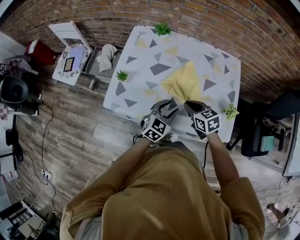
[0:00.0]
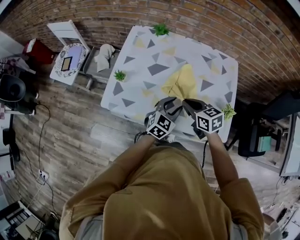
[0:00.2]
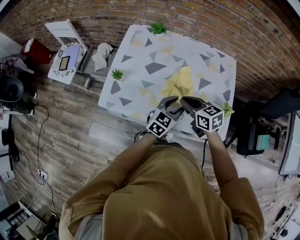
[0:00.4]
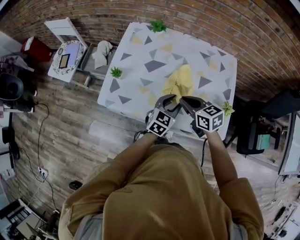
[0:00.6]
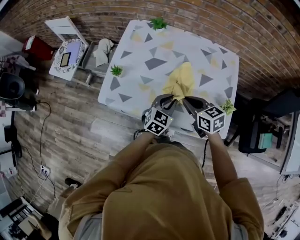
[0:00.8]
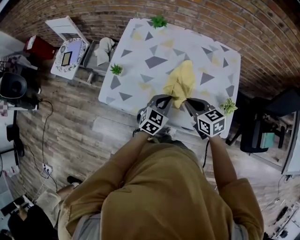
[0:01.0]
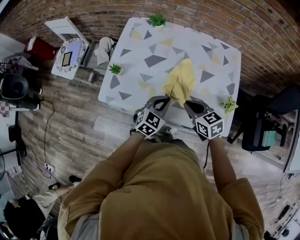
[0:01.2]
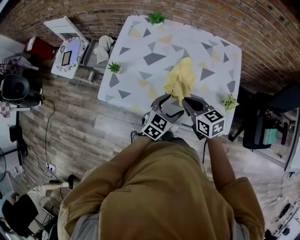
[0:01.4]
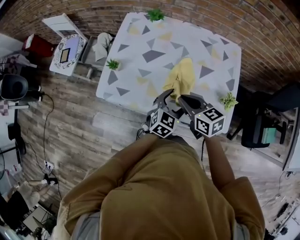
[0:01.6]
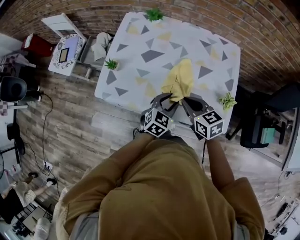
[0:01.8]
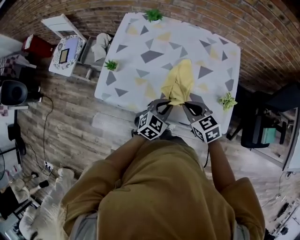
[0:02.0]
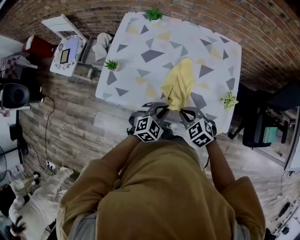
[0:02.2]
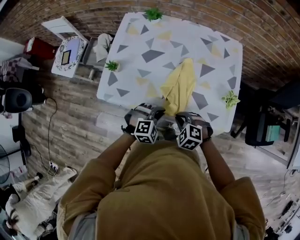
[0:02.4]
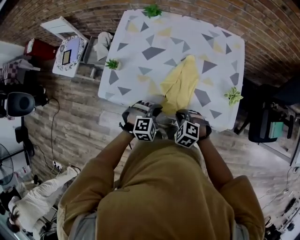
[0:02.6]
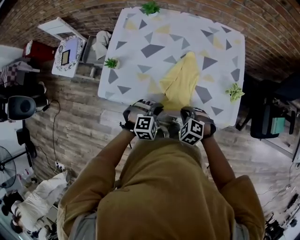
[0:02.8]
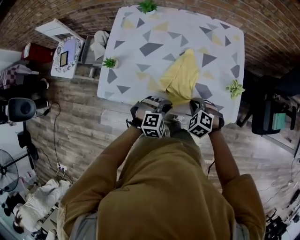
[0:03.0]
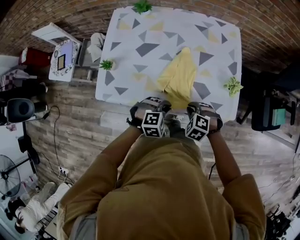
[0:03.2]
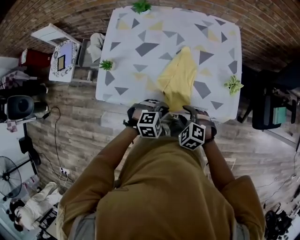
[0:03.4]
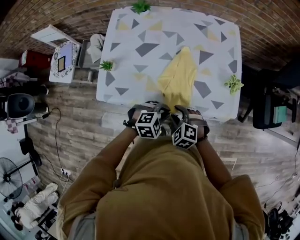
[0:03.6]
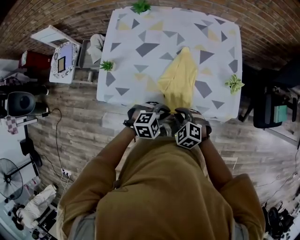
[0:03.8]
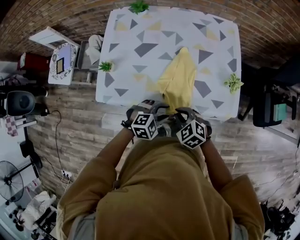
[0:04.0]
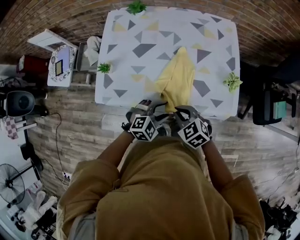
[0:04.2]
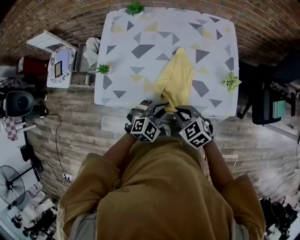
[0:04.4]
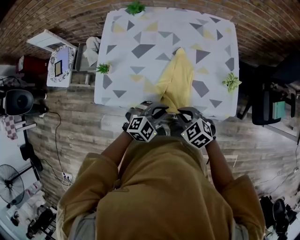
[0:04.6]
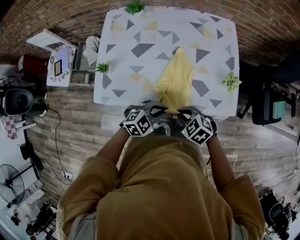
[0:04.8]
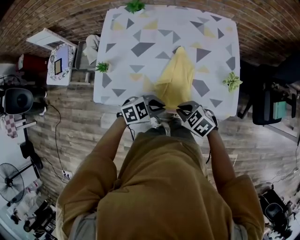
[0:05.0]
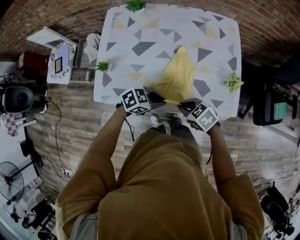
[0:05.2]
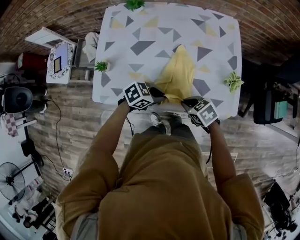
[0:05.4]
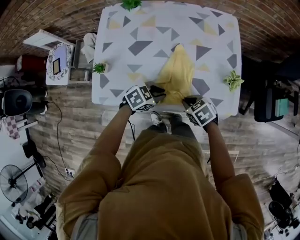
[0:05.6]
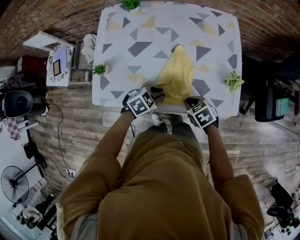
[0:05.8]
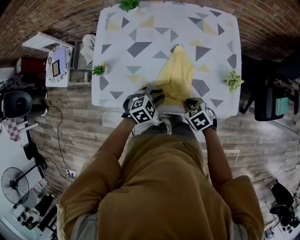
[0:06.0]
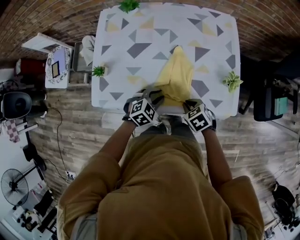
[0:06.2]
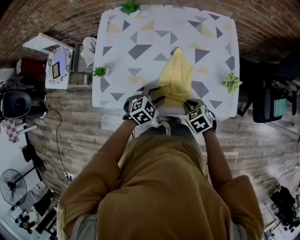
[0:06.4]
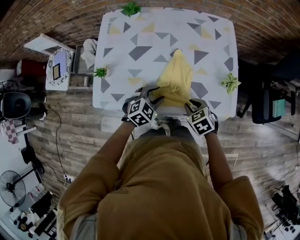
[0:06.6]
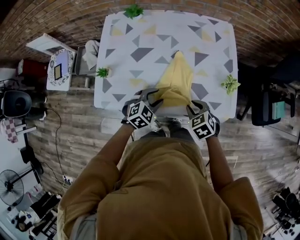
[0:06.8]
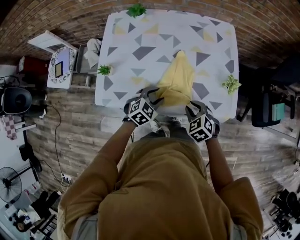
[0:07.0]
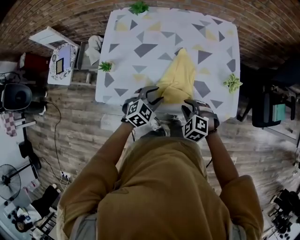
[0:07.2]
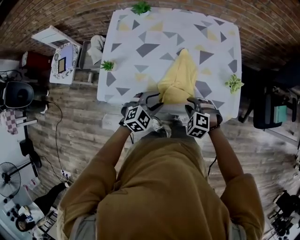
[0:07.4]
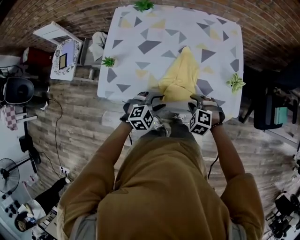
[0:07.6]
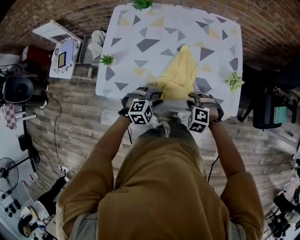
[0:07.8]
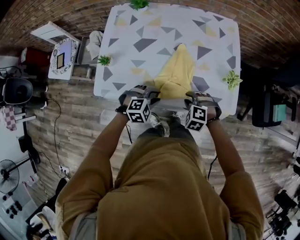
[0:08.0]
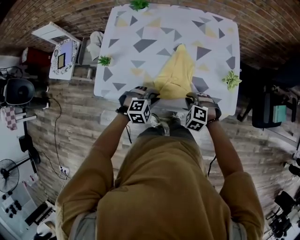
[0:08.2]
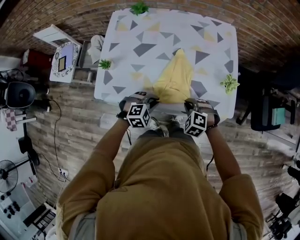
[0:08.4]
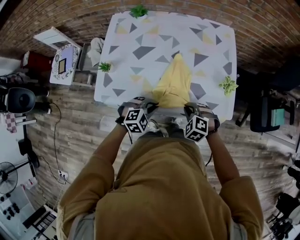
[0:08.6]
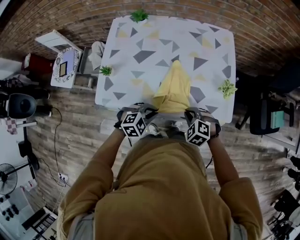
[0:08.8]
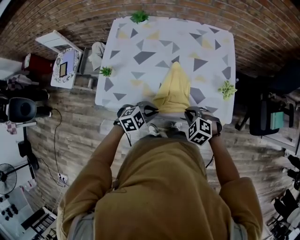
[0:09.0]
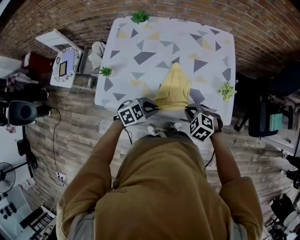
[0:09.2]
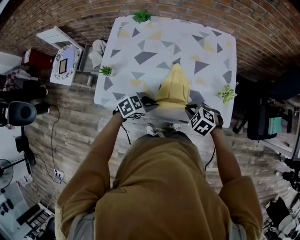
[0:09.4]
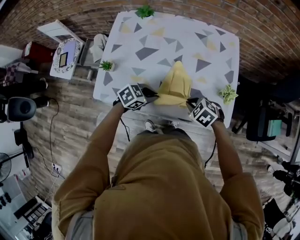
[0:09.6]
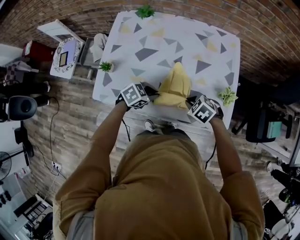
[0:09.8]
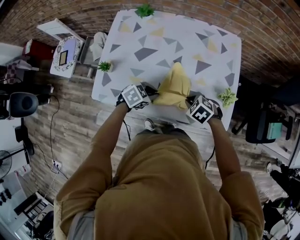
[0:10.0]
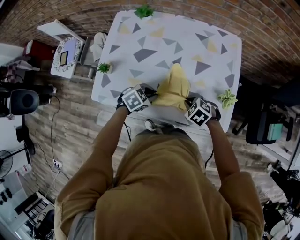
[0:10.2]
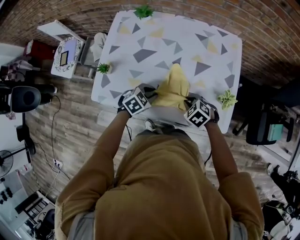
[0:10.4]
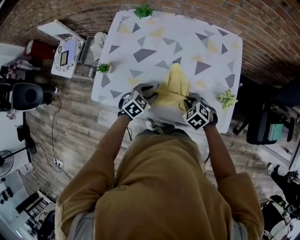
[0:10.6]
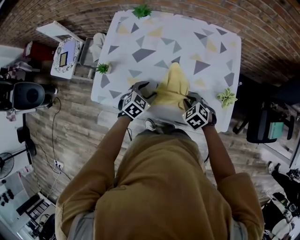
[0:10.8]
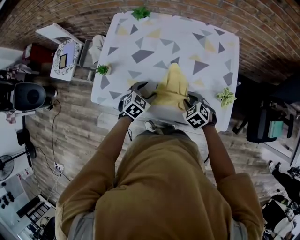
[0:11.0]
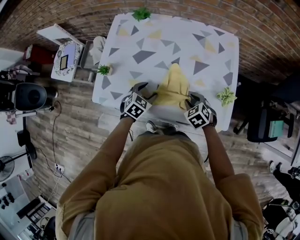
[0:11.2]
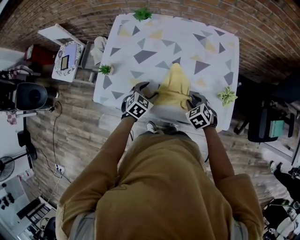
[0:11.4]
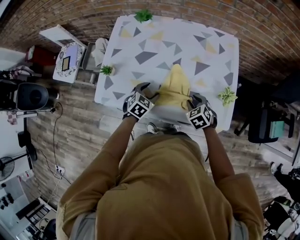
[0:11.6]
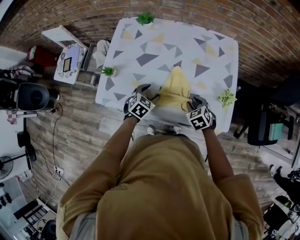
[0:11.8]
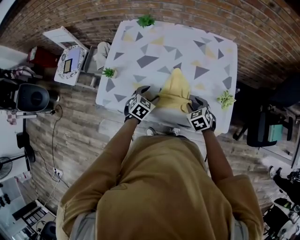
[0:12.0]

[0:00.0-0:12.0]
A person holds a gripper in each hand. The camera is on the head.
0:00.0 to 0:01.6: The left gripper goes left and right, some 5 cm each way, reversing 2 times, and opens its fingers, while the right gripper shifts about 5 cm upward.
0:01.6 to 0:03.0: The right gripper goes about 15 cm downward and to the right, and angles its fingers downward, by some 30 degrees. Meanwhile the left gripper goes approximately 10 cm downward and backward, twists approximately 50 degrees clockwise, seen from behind, and closes up.
0:03.0 to 0:04.4: The left gripper rotates some 20 degrees. The right gripper shifts approximately 10 cm backward, upward and to the left, and turns by some 30 degrees.
0:04.4 to 0:06.0: The grippers both shift downward by about 5 cm. The right gripper rotates approximately 20 degrees. Meanwhile the left gripper rotates approximately 20 degrees.
0:06.0 to 0:07.6: The left gripper shifts approximately 5 cm backward; the right gripper rolls counterclockwise, seen from behind, by about 50 degrees.
0:07.6 to 0:09.0: The grippers make only small movements.
0:09.0 to 0:10.4: The right gripper moves roughly 10 cm. The left gripper moves roughly 10 cm, and turns by some 20 degrees.
0:10.4 to 0:12.0: The right gripper changes its angle by some 30 degrees, while the left gripper changes its angle by about 20 degrees.

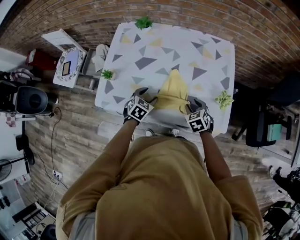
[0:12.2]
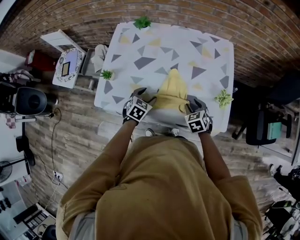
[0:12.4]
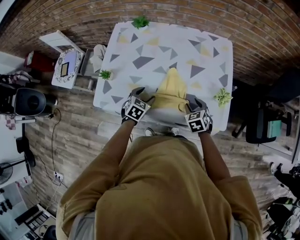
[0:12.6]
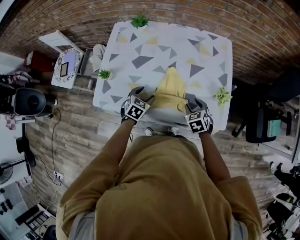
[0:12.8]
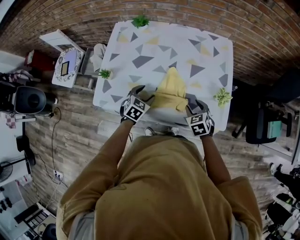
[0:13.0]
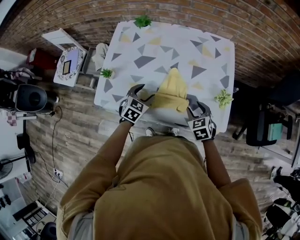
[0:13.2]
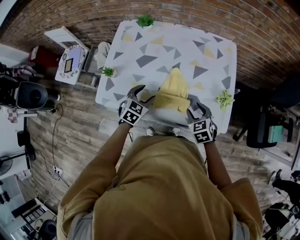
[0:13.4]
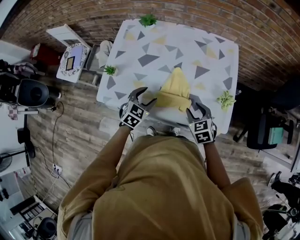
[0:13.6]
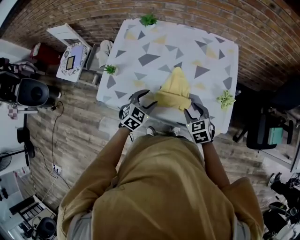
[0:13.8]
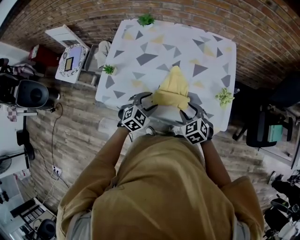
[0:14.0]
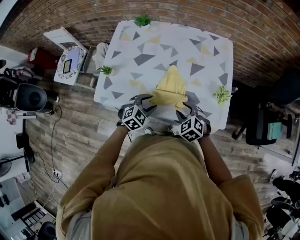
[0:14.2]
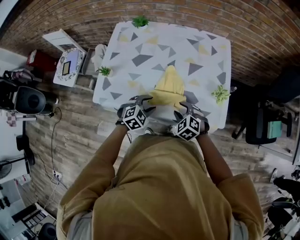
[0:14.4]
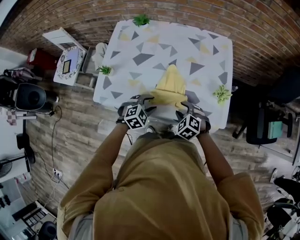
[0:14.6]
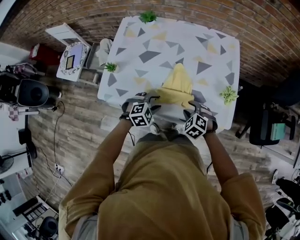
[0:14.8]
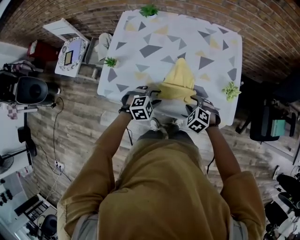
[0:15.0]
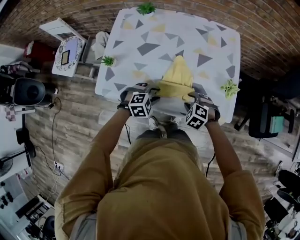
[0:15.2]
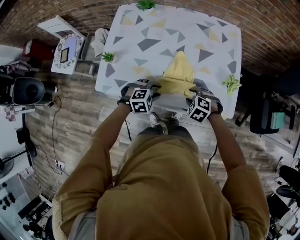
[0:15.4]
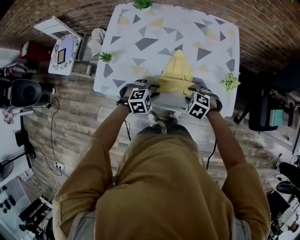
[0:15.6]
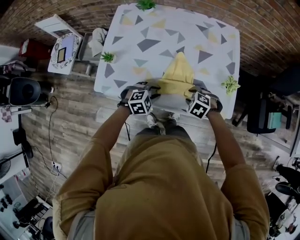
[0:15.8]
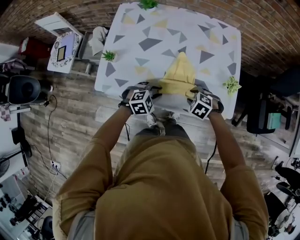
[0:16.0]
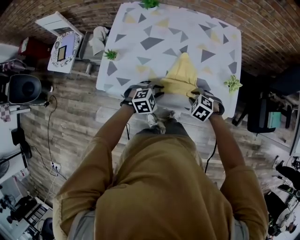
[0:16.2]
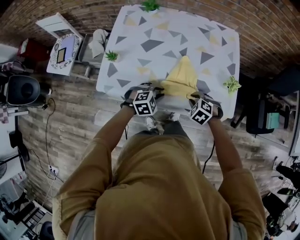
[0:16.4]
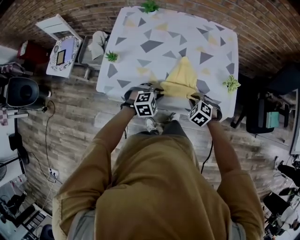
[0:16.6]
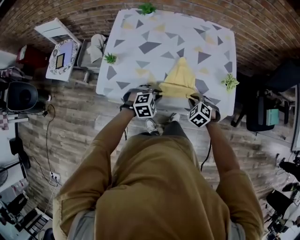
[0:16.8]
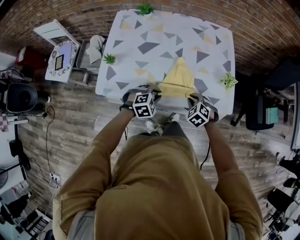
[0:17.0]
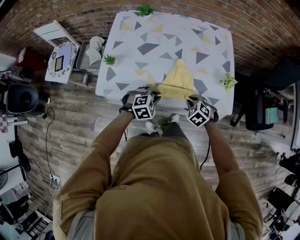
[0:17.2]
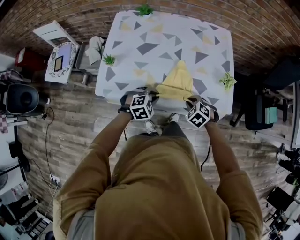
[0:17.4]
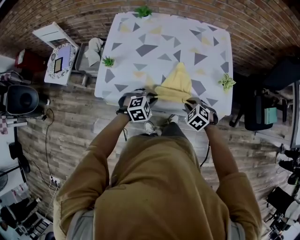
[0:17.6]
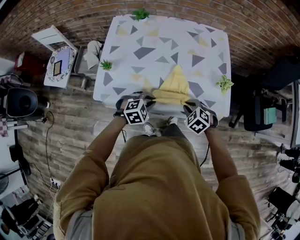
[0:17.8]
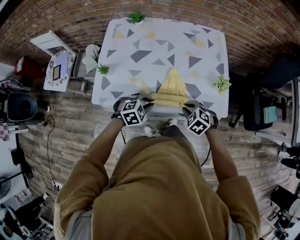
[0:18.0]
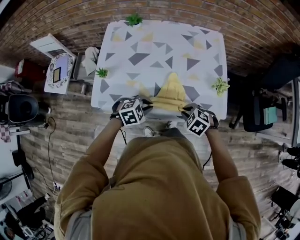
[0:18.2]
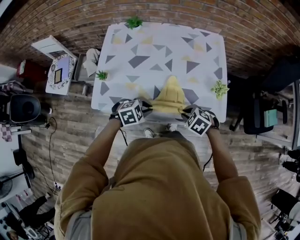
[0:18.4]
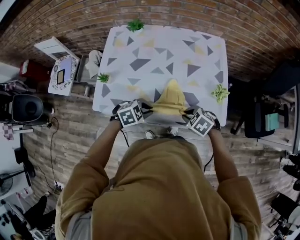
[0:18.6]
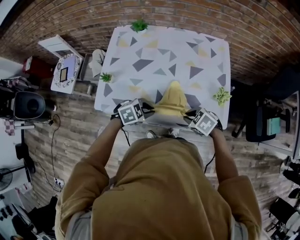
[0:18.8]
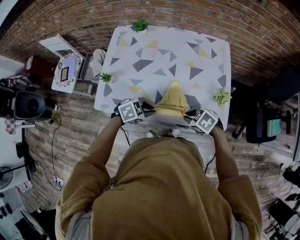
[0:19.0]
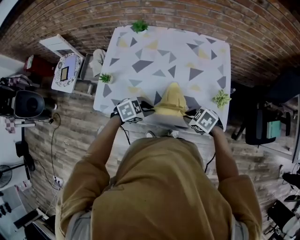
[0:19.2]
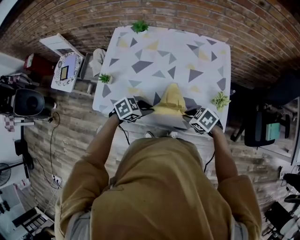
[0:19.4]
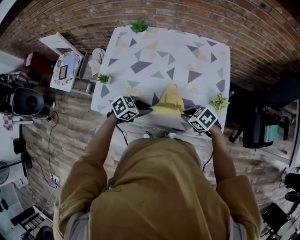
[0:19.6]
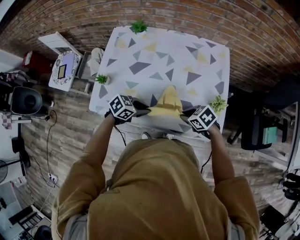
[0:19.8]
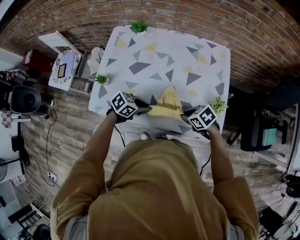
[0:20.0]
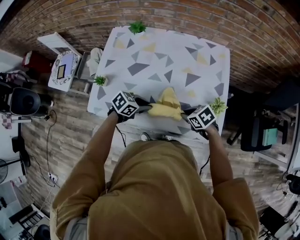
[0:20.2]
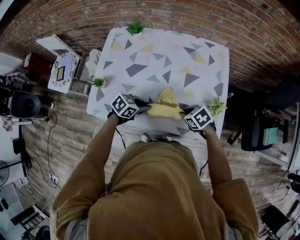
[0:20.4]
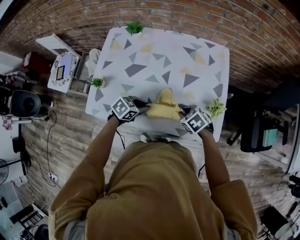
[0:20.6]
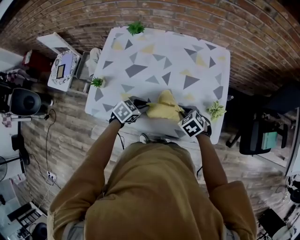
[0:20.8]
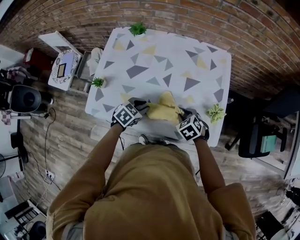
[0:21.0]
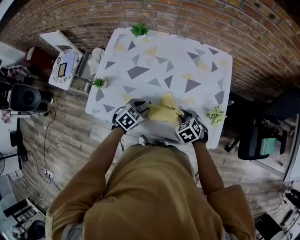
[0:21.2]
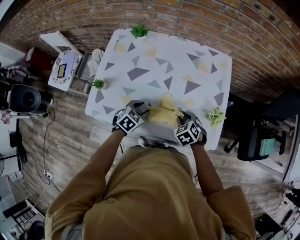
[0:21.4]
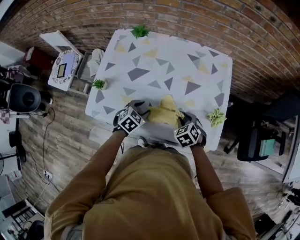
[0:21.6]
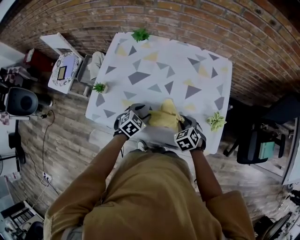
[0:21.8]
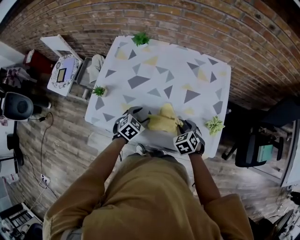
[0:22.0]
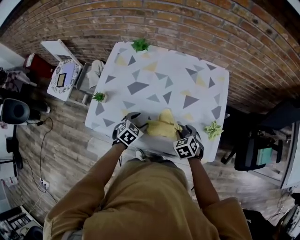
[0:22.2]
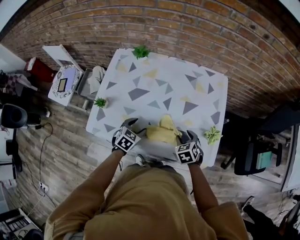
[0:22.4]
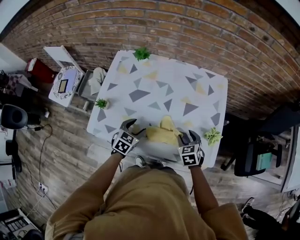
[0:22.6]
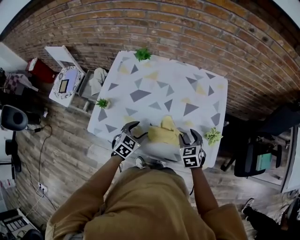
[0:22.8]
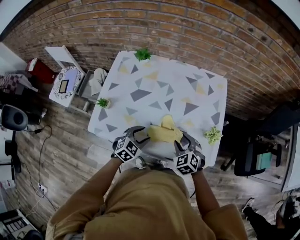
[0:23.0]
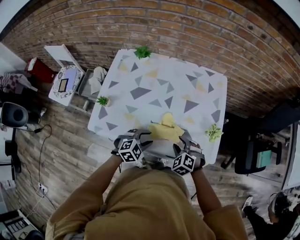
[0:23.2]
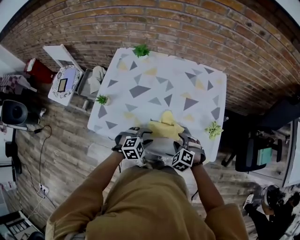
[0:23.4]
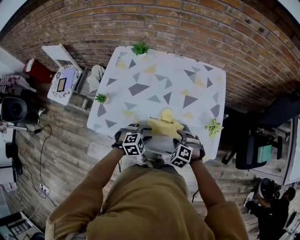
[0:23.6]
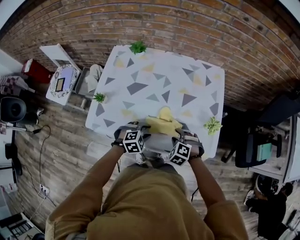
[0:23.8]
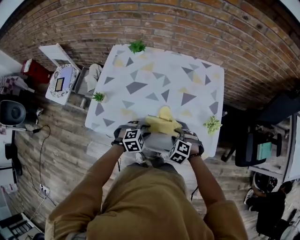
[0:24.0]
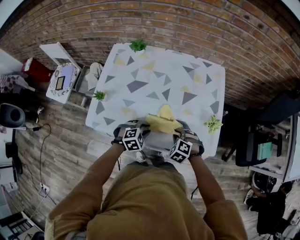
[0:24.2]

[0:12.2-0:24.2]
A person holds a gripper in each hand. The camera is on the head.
0:12.2 to 0:13.8: Both grippers move upward, roughly 5 cm.
0:13.8 to 0:15.2: Both grippers travel together downward, roughly 5 cm. The right gripper swivels roughly 40 degrees. The left gripper rotates some 40 degrees.
0:15.2 to 0:16.6: The grippers make only small movements.
0:16.6 to 0:18.2: The right gripper changes place by some 5 cm.
0:18.2 to 0:19.8: The right gripper shifts by roughly 5 cm, and turns by roughly 30 degrees. The left gripper rotates some 40 degrees.
0:19.8 to 0:21.2: The right gripper moves approximately 5 cm, and rotates some 30 degrees; the left gripper changes place by about 5 cm, and rotates about 30 degrees.
0:21.2 to 0:22.6: The right gripper turns by some 20 degrees.
0:22.6 to 0:24.2: The right gripper heads backward, covering approximately 5 cm, and rotates around the line of its fingers by about 40 degrees, counterclockwise from behind. The left gripper goes roughly 10 cm to the right and backward, and rotates about 40 degrees.
